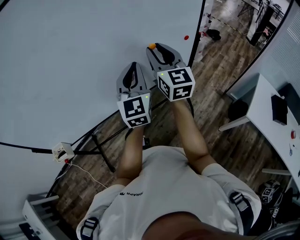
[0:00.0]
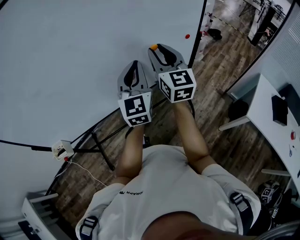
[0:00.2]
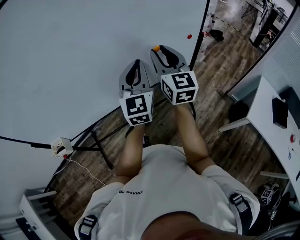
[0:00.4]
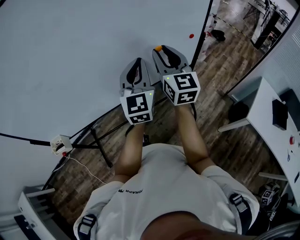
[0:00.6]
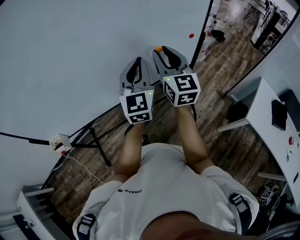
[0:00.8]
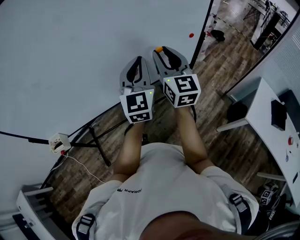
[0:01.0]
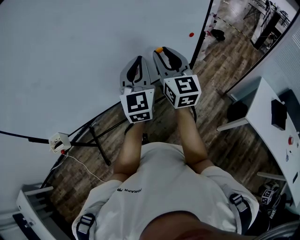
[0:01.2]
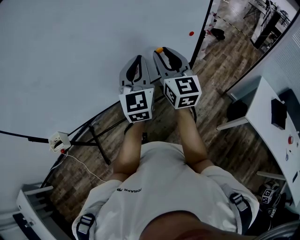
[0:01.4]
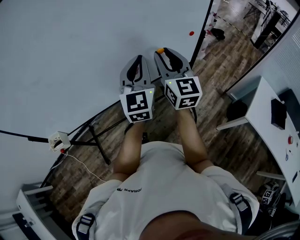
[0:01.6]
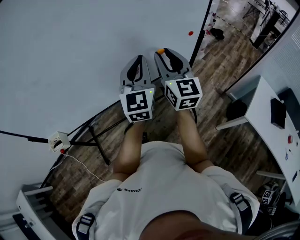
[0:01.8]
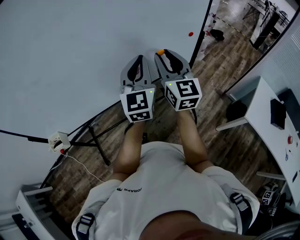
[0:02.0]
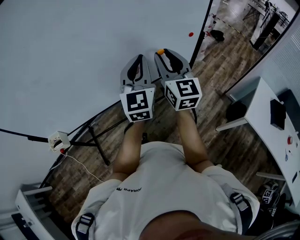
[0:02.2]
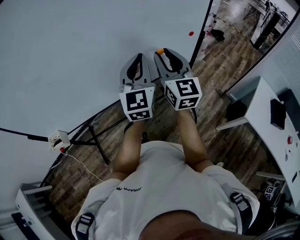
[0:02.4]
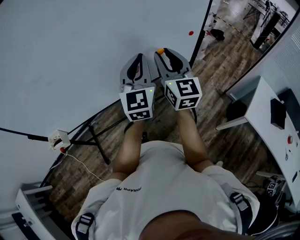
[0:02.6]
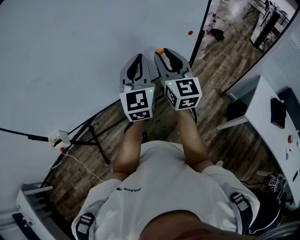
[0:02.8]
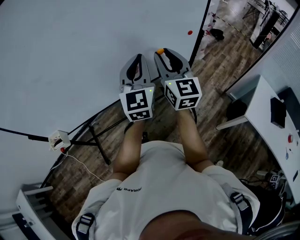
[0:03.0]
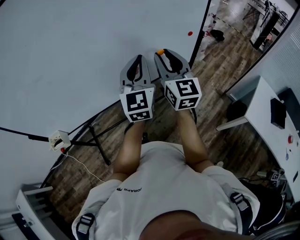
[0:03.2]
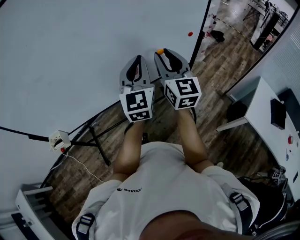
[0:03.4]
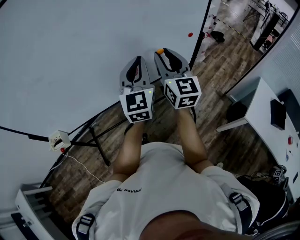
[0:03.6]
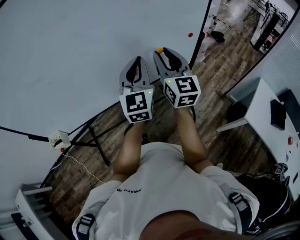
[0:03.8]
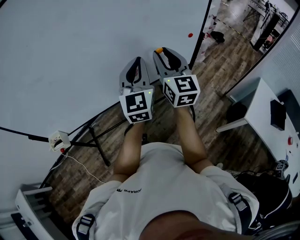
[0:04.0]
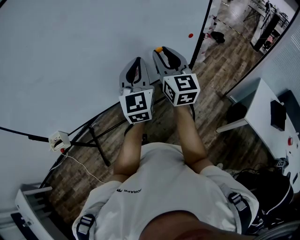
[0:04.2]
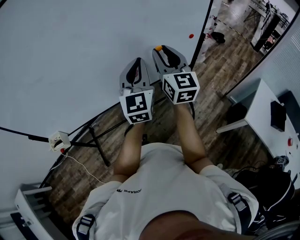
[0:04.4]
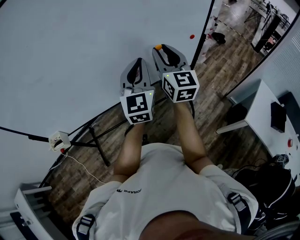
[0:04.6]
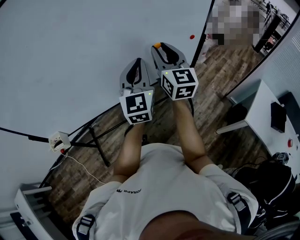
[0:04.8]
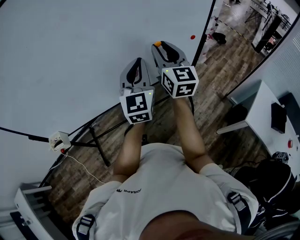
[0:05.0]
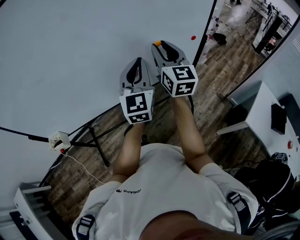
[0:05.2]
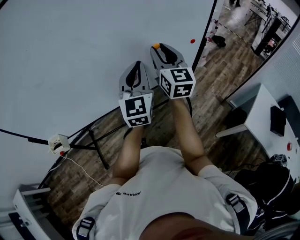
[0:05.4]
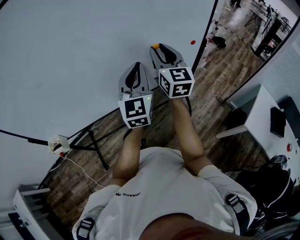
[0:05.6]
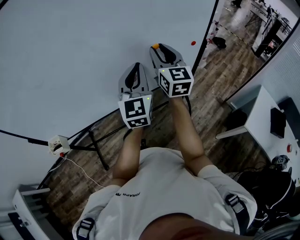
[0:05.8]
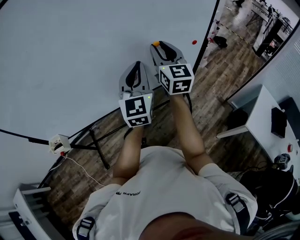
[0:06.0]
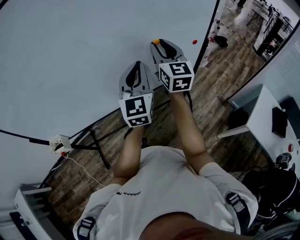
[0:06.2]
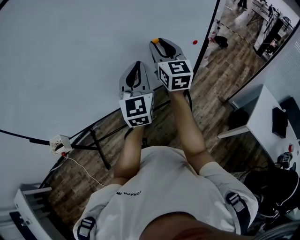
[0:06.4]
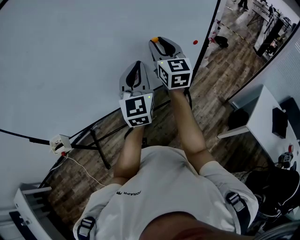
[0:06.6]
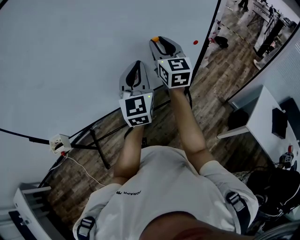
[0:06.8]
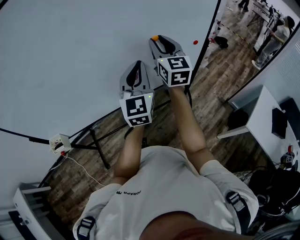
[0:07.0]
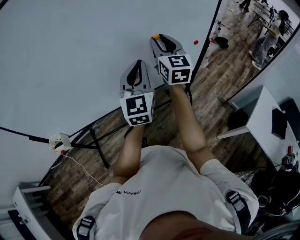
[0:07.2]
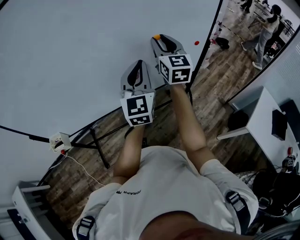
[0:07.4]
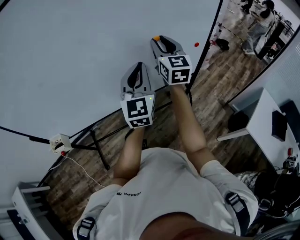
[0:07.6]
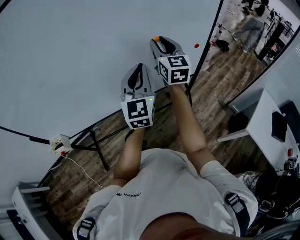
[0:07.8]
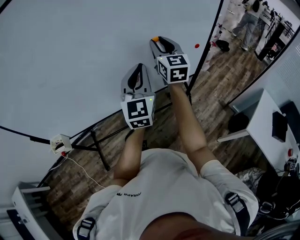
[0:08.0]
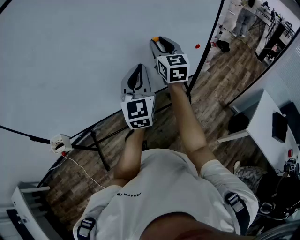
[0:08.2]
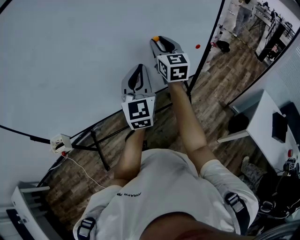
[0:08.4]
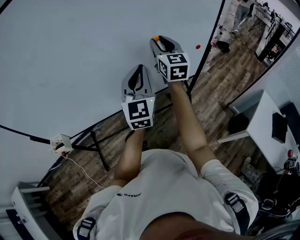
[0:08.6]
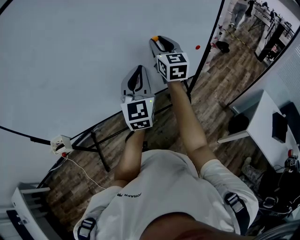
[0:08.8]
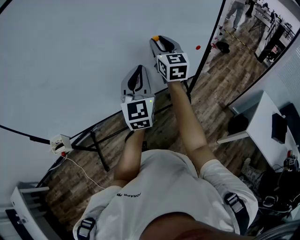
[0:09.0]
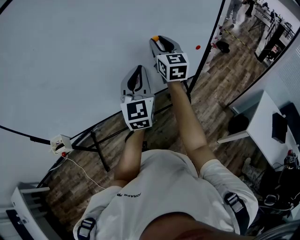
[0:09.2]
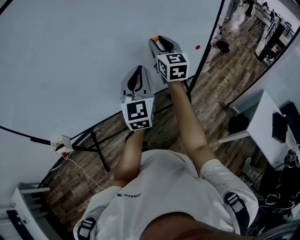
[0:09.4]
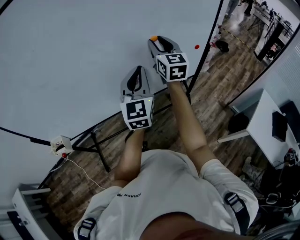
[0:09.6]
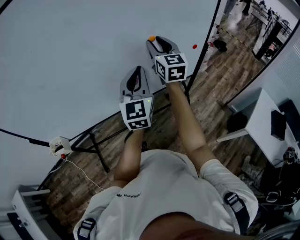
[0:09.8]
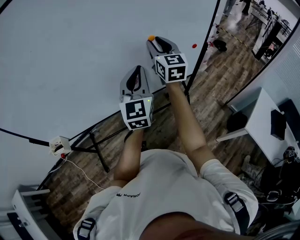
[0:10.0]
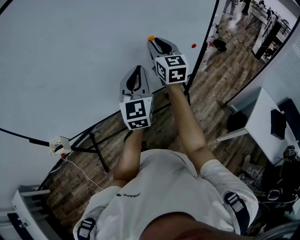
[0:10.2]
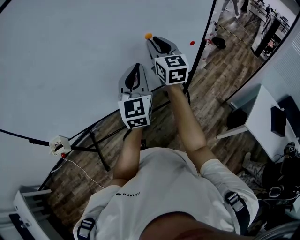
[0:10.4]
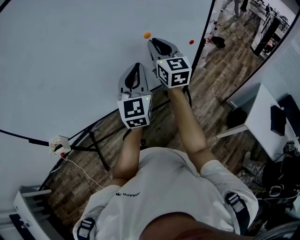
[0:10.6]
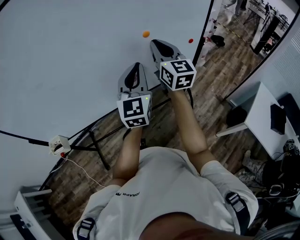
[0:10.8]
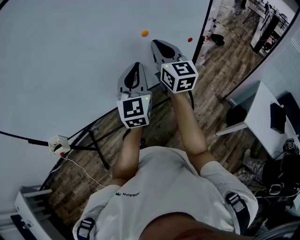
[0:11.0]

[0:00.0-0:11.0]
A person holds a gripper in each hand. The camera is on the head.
0:00.0 to 0:06.2: The grippers make only small movements.
0:06.2 to 0:09.4: The grippers stay close to where they were, moving slightly.
0:09.4 to 0:11.0: The right gripper heads backward, covering about 5 cm, and closes up.

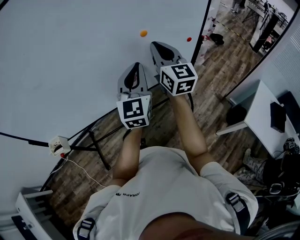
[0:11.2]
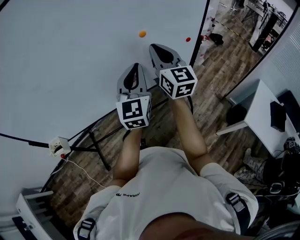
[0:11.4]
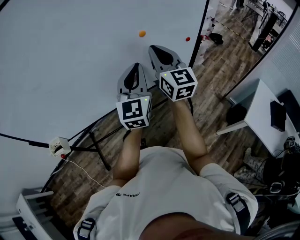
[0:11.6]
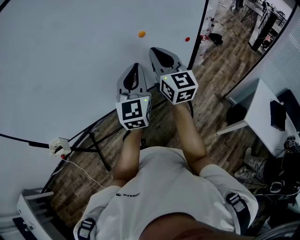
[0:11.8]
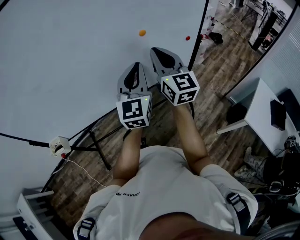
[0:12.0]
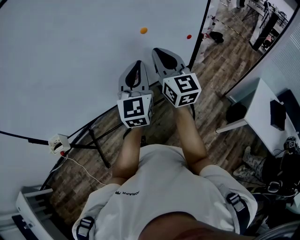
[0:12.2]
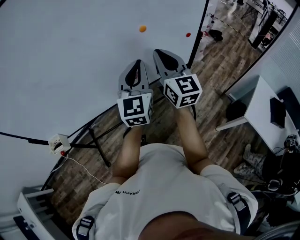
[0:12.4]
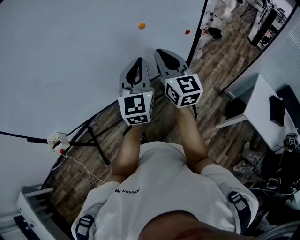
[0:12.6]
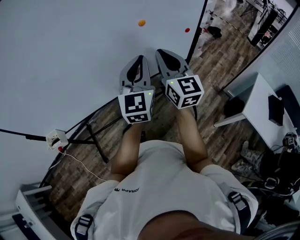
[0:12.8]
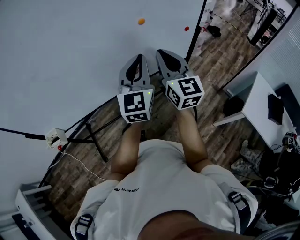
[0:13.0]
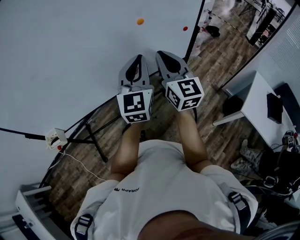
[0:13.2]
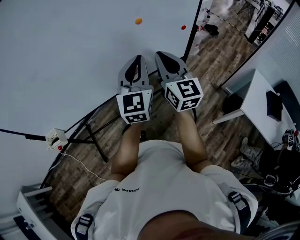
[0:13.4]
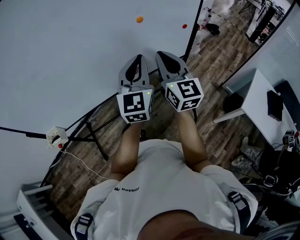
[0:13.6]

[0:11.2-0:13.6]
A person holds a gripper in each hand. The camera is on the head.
0:11.2 to 0:12.4: The grippers make only small movements.
0:12.4 to 0:13.6: The right gripper goes some 5 cm backward.

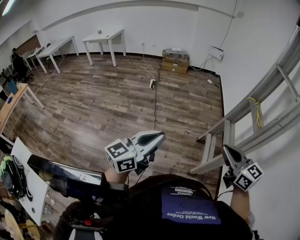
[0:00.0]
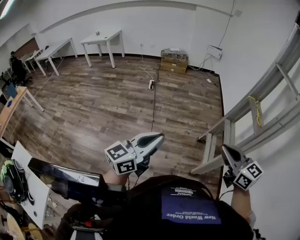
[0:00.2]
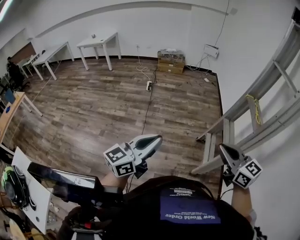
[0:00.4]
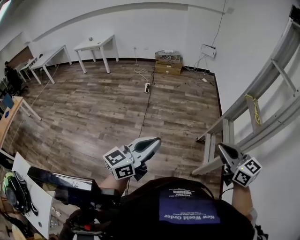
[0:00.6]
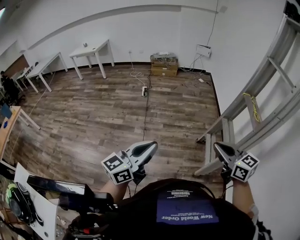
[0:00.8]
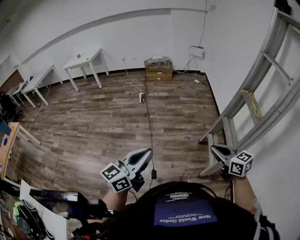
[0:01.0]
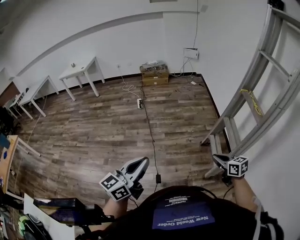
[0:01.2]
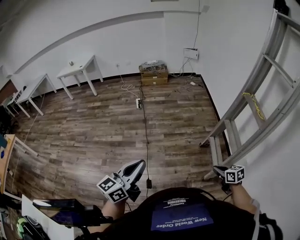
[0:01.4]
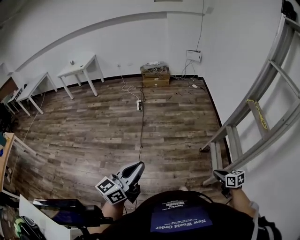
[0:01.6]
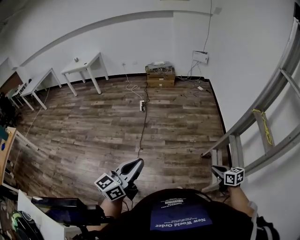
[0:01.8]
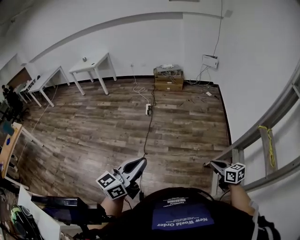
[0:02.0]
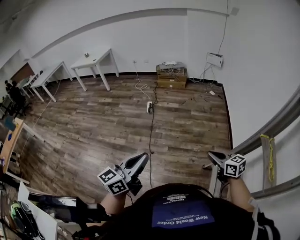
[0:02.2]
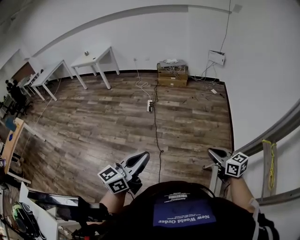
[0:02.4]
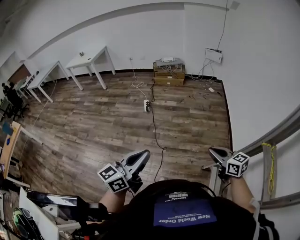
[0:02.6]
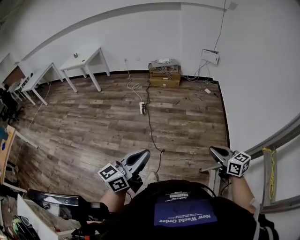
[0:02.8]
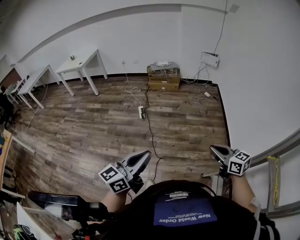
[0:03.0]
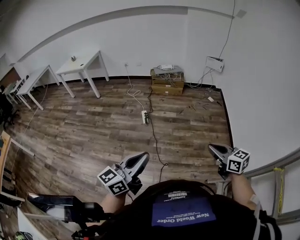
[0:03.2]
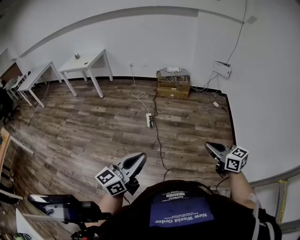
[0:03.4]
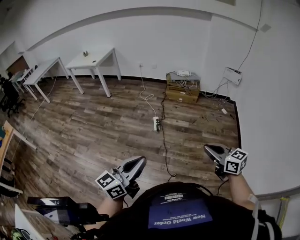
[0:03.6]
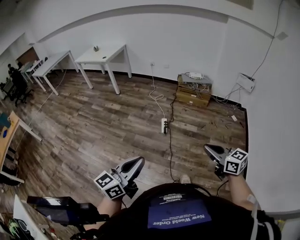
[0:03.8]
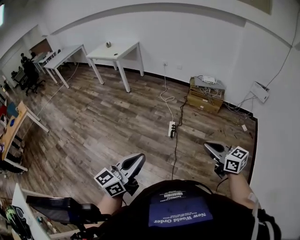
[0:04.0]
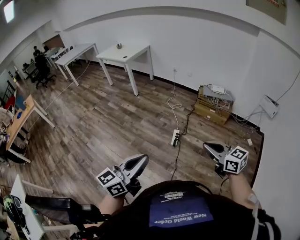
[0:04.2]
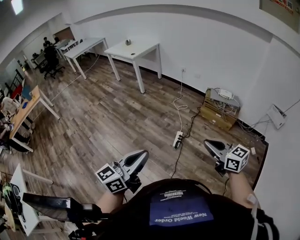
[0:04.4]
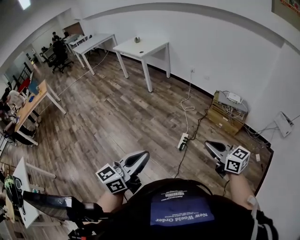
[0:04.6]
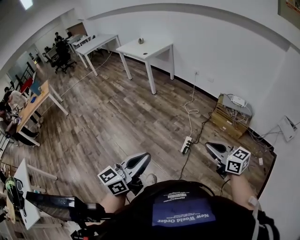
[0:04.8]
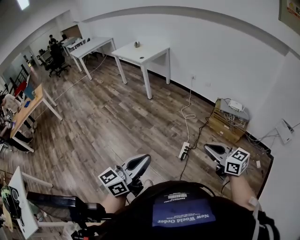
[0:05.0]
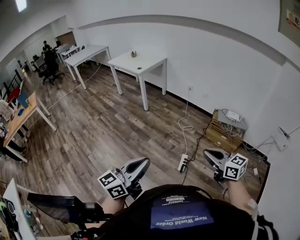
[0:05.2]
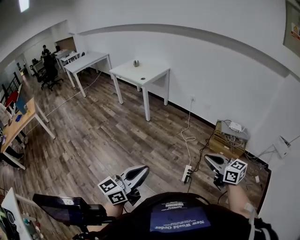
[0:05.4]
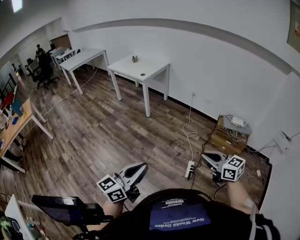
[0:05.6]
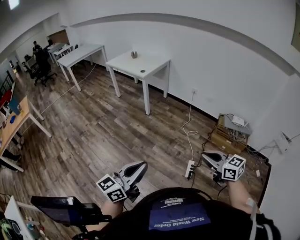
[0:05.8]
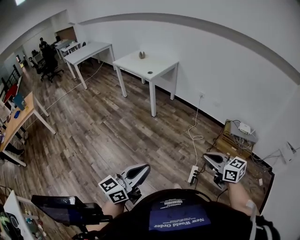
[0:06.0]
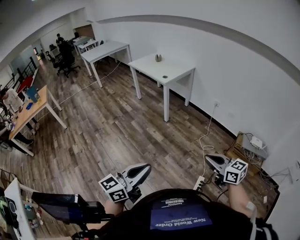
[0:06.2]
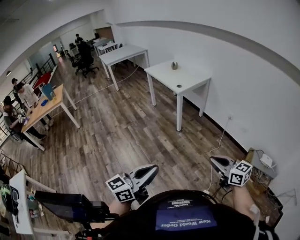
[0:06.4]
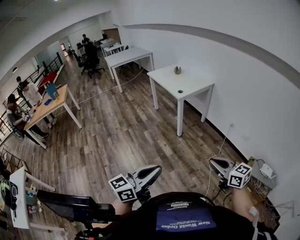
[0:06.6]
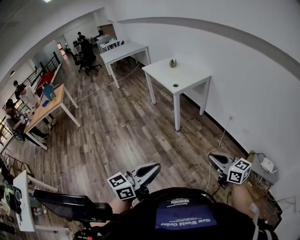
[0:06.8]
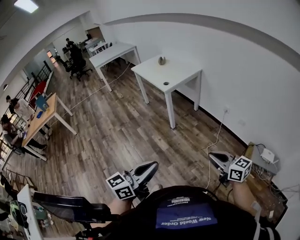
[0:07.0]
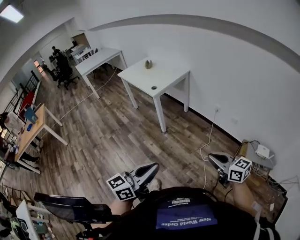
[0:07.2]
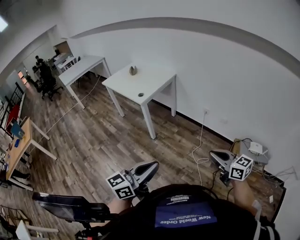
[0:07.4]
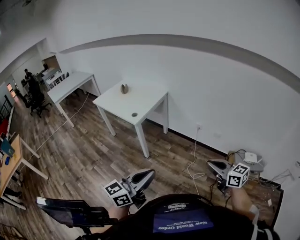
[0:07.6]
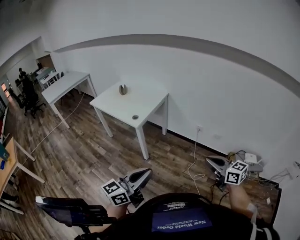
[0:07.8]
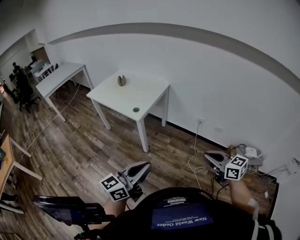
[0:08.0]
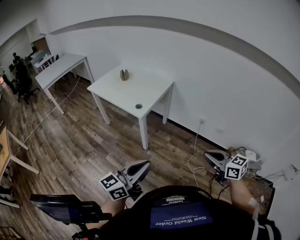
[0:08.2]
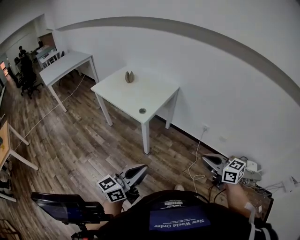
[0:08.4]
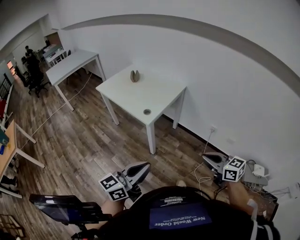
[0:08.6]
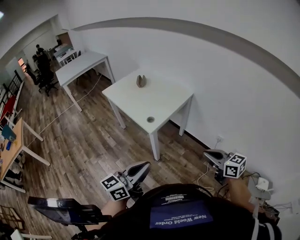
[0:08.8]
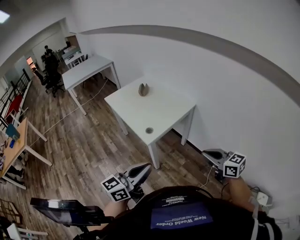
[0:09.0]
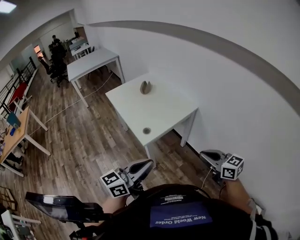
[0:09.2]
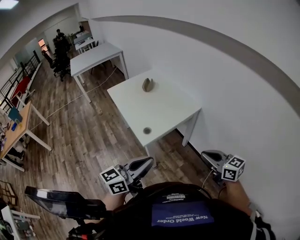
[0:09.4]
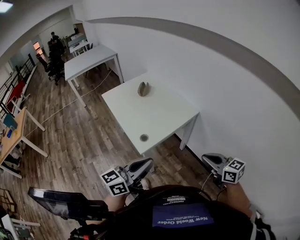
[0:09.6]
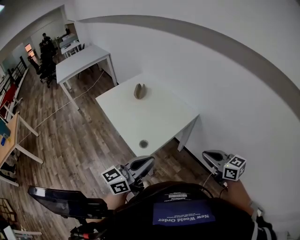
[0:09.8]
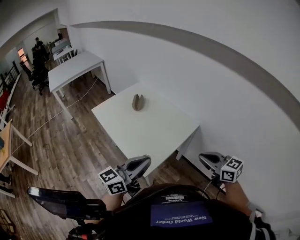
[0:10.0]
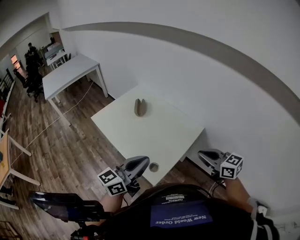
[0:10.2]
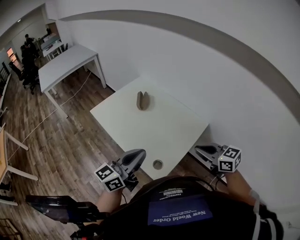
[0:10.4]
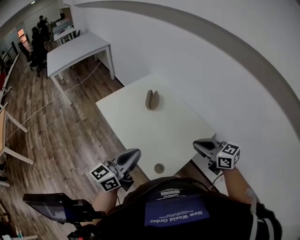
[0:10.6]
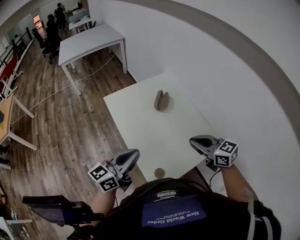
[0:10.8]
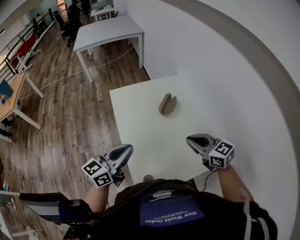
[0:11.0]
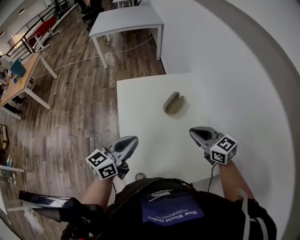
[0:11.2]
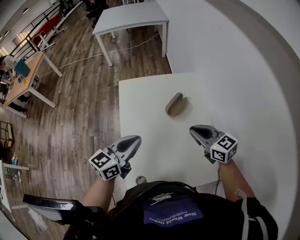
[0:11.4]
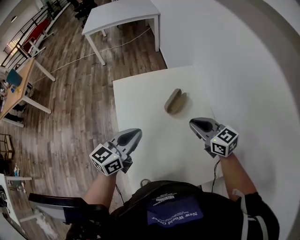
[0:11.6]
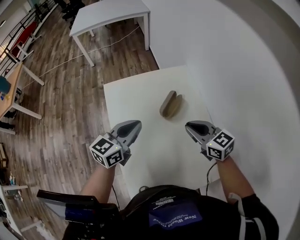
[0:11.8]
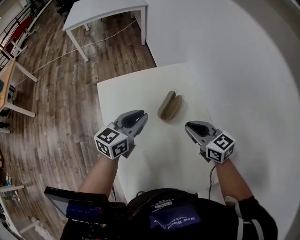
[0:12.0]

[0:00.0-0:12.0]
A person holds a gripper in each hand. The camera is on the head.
0:00.0 to 0:01.6: The right gripper goes approximately 30 cm downward, and tilts its fingers some 30 degrees downward; the left gripper travels to the left and forward by about 20 cm.
0:01.6 to 0:03.0: The two grippers travel together, forward, roughly 50 cm. The right gripper swivels about 30 degrees.
0:03.0 to 0:04.4: The two grippers travel together, some 60 cm. The left gripper swivels some 30 degrees, while the right gripper changes its angle by approximately 40 degrees.
0:04.4 to 0:06.0: The two grippers travel together, forward and to the left, roughly 50 cm.
0:06.0 to 0:07.6: Both grippers are carried forward, roughly 50 cm.
0:07.6 to 0:09.0: Both grippers move forward, roughly 40 cm.
0:09.0 to 0:10.4: The pair of grippers is taken forward, some 40 cm.
0:10.4 to 0:12.0: The pair of grippers is taken about 50 cm. The left gripper swivels roughly 40 degrees. Meanwhile the right gripper swivels approximately 30 degrees.
